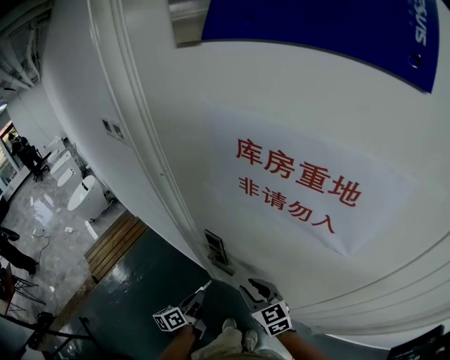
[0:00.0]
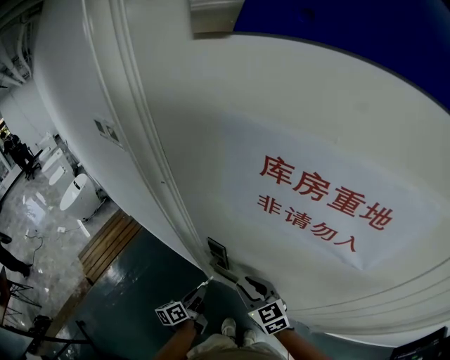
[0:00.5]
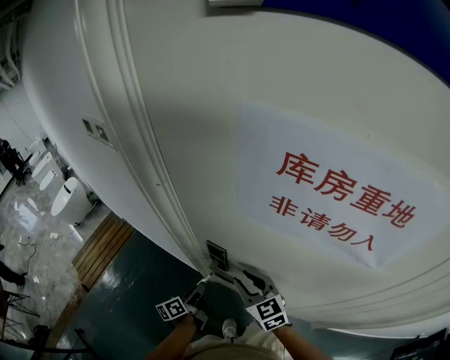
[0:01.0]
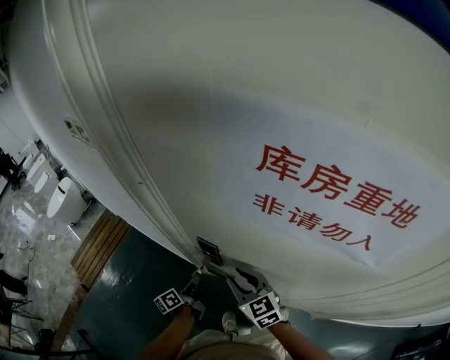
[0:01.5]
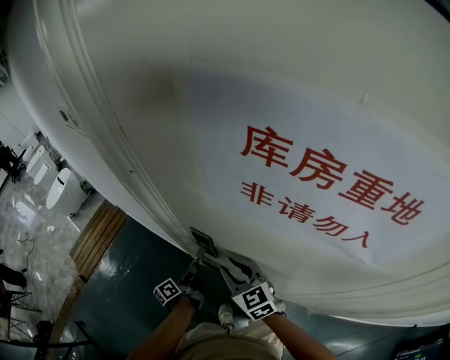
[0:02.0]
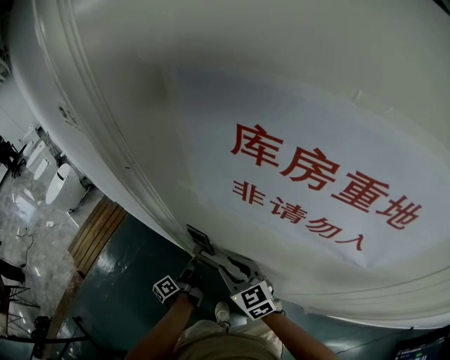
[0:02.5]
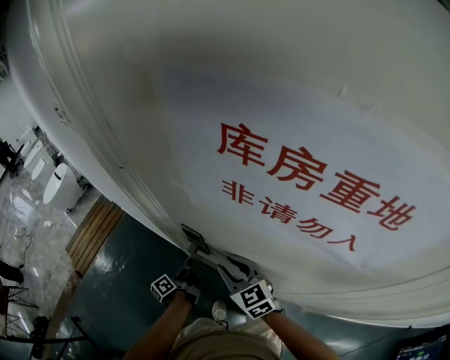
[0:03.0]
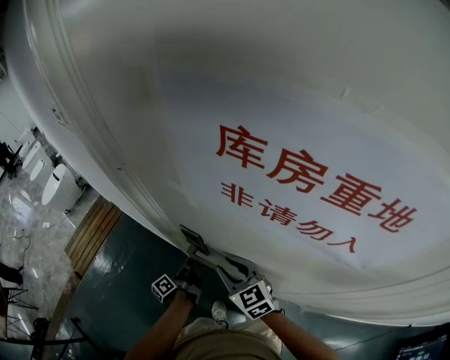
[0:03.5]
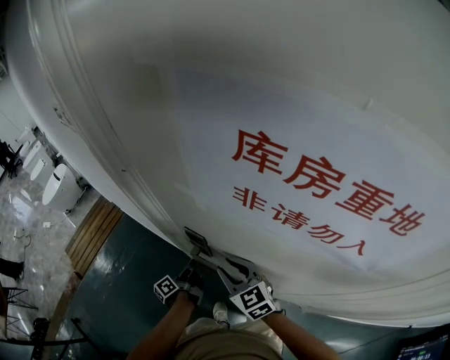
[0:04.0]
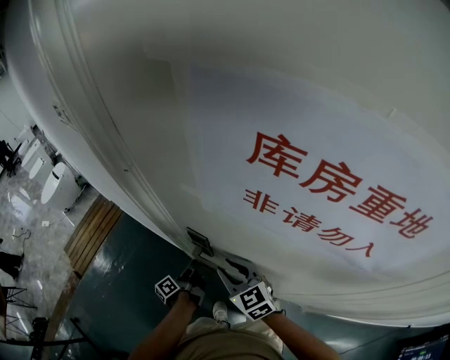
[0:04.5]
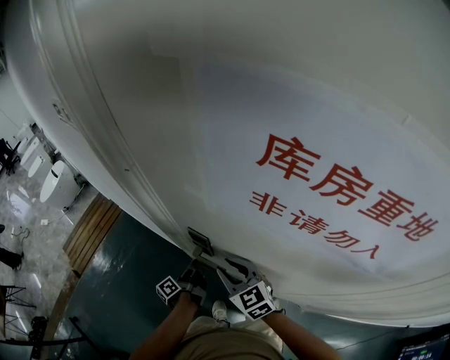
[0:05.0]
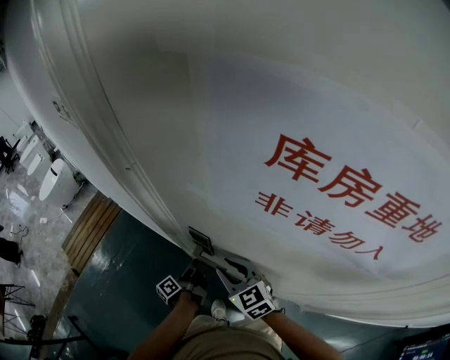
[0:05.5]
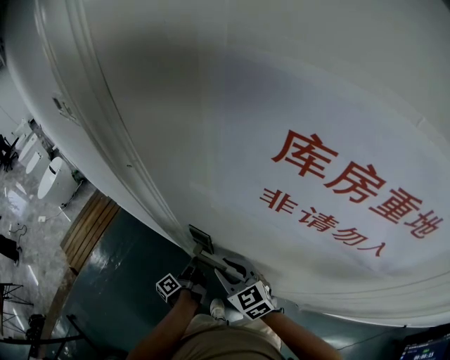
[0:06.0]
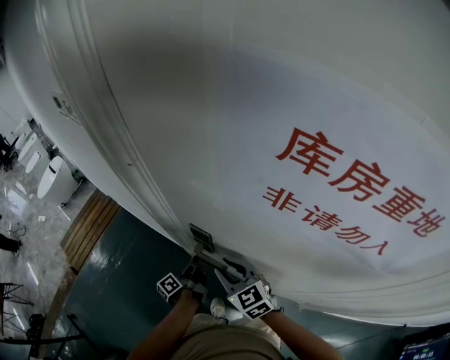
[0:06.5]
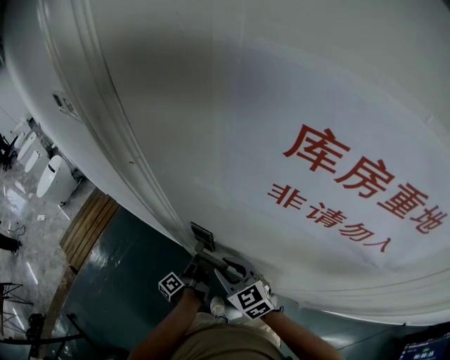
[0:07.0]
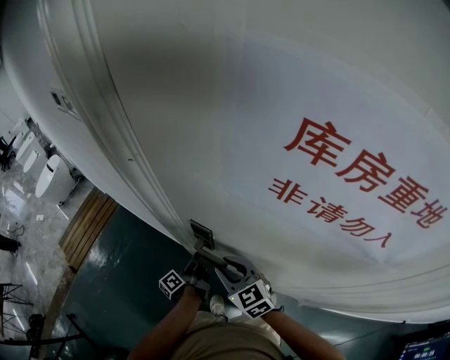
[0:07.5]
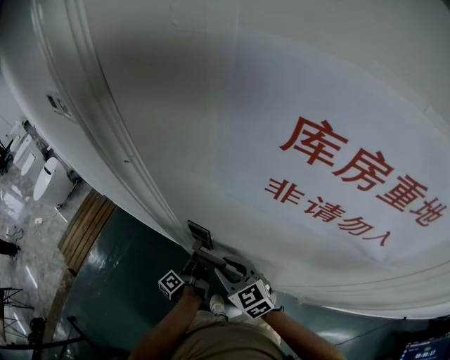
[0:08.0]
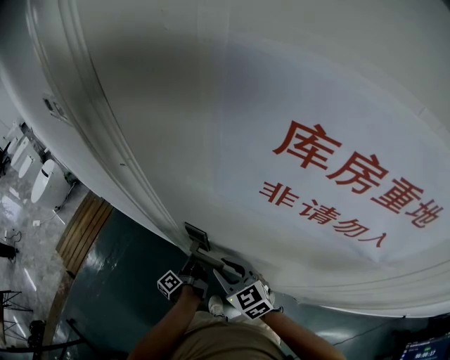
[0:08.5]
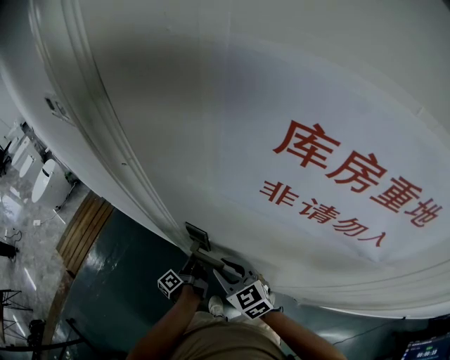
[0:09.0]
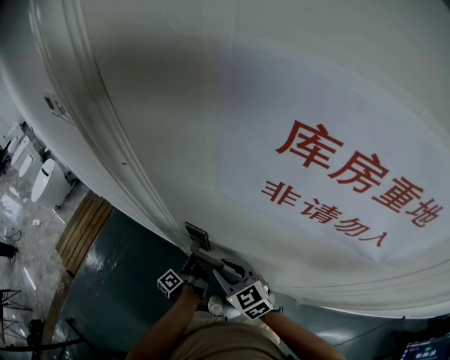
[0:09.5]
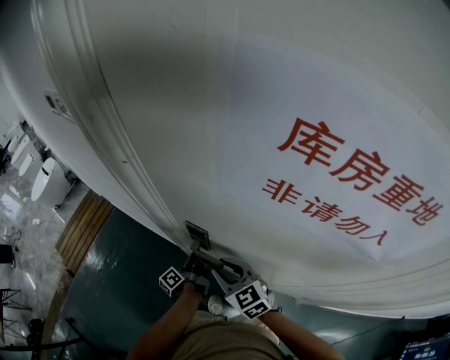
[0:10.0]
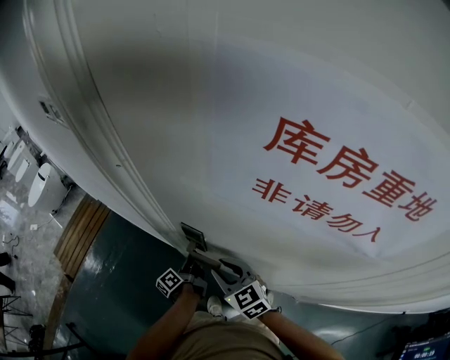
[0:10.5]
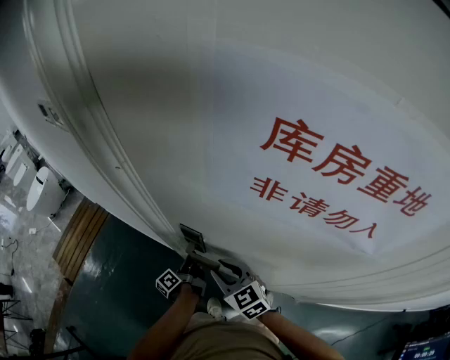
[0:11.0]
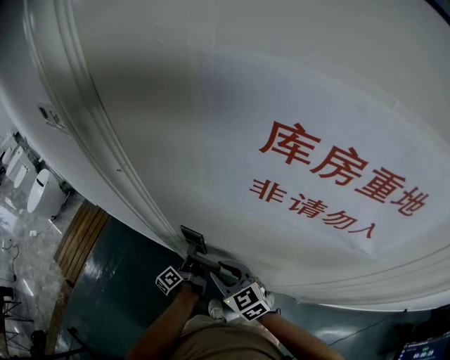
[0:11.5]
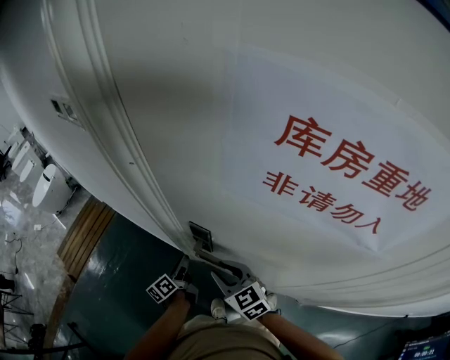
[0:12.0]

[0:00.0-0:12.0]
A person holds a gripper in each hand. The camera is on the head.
0.0 to 2.0 s: The left gripper moves forward and downward, approximately 15 cm, and rotates some 20 degrees; the right gripper shifts approximately 10 cm forward.
2.0 to 10.0 s: There are only small adjustments of the grippers.
10.0 to 12.0 s: The left gripper is displaced to the left by approximately 5 cm, changes its angle by roughly 30 degrees, and opens up.

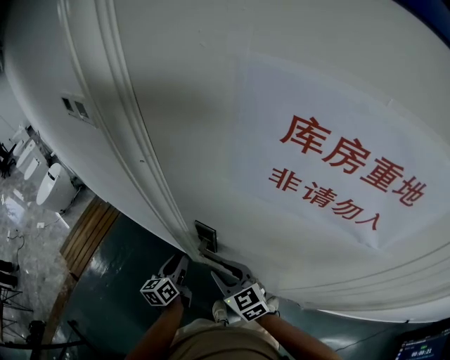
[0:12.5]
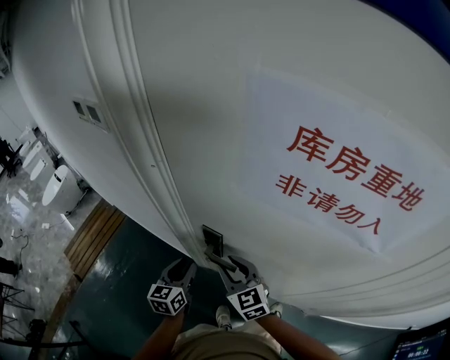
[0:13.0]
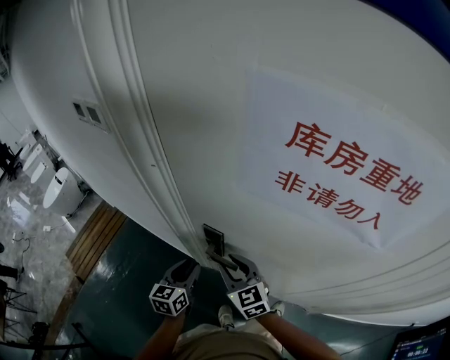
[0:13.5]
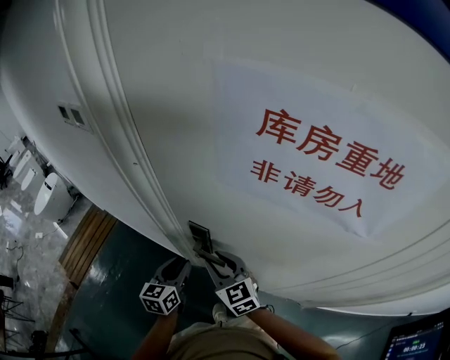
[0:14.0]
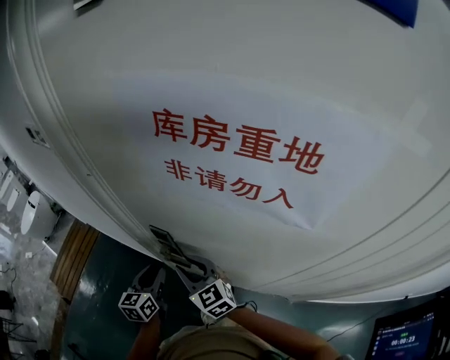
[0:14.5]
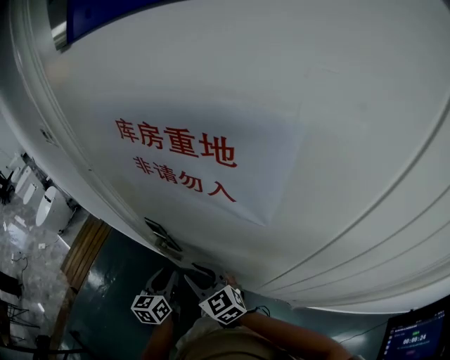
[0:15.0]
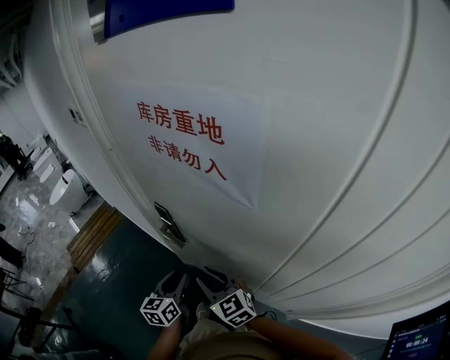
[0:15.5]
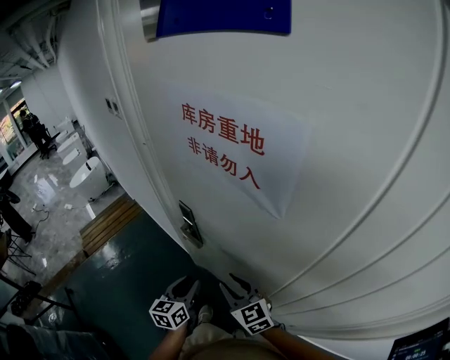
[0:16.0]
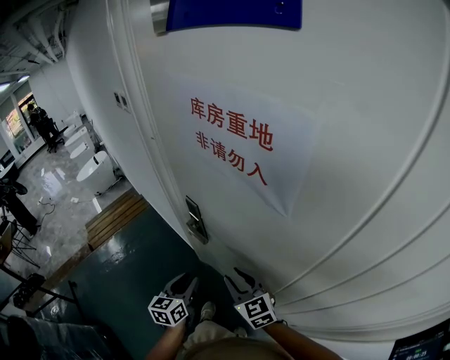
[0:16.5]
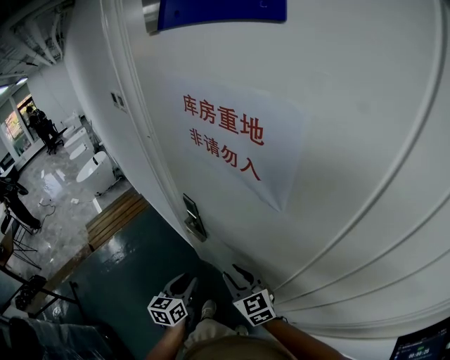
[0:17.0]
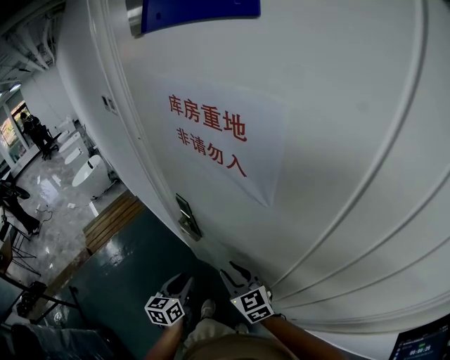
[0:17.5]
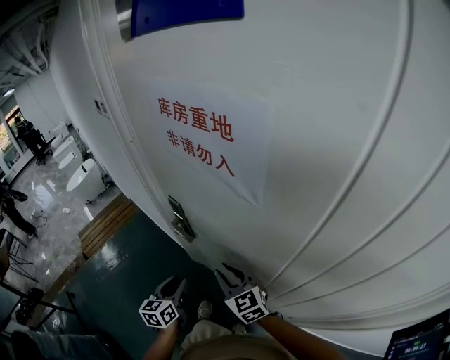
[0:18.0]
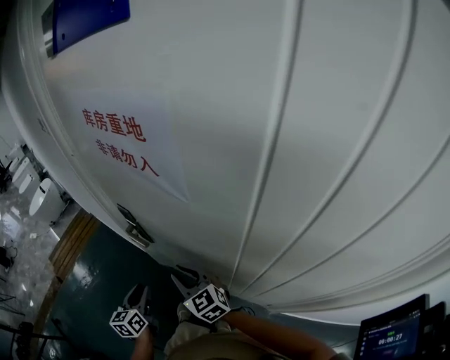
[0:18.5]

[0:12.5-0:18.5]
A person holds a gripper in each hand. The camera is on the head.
12.5 to 14.5 s: The left gripper is displaced to the right and upward by roughly 10 cm.
14.5 to 16.5 s: The two grippers go some 20 cm backward and to the right.
16.5 to 18.5 s: There are only small adjustments of the grippers.

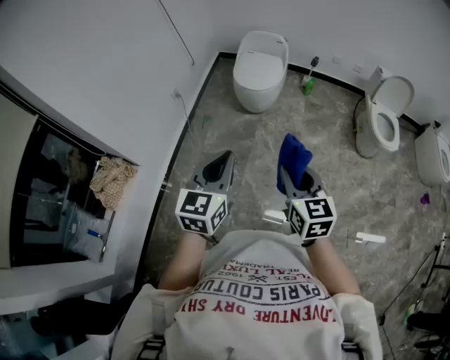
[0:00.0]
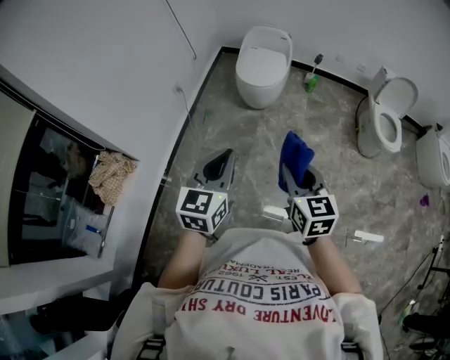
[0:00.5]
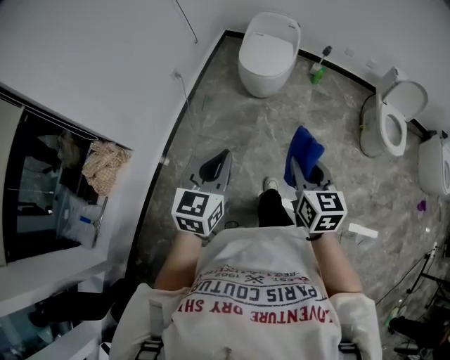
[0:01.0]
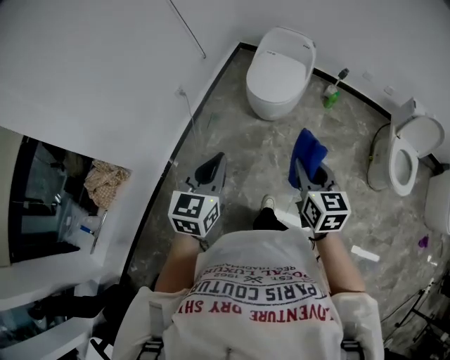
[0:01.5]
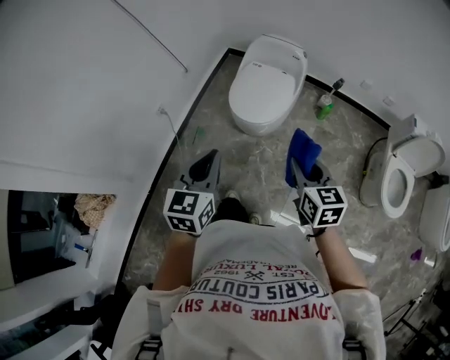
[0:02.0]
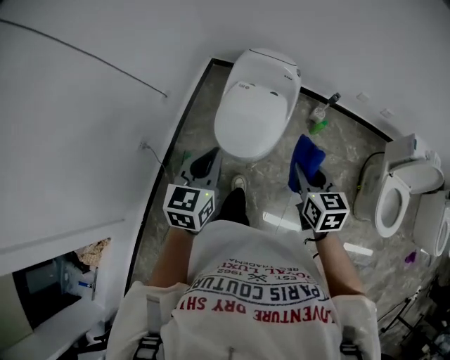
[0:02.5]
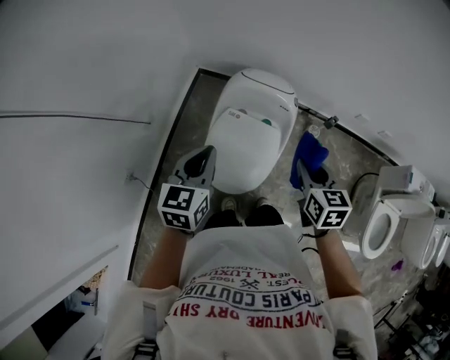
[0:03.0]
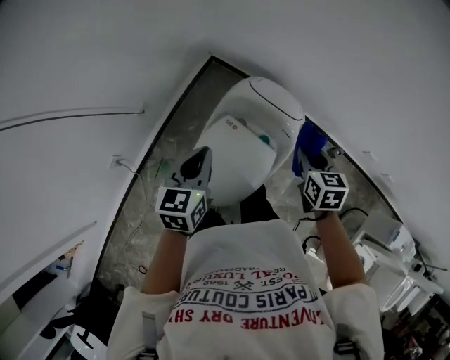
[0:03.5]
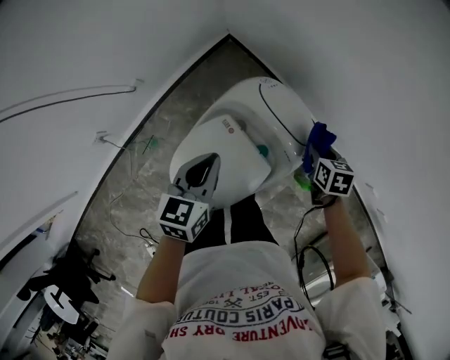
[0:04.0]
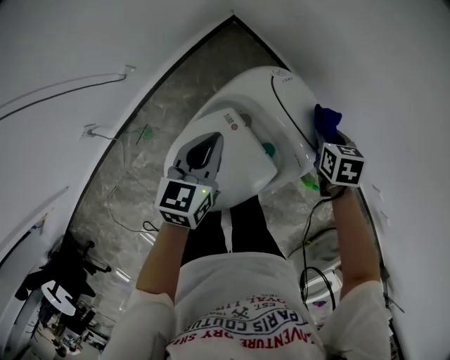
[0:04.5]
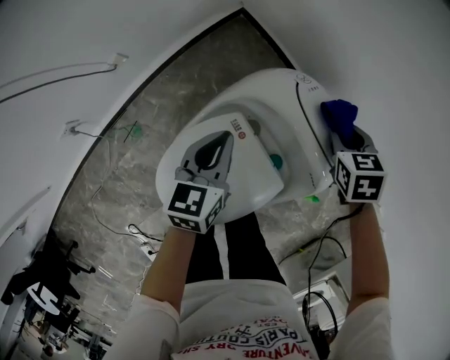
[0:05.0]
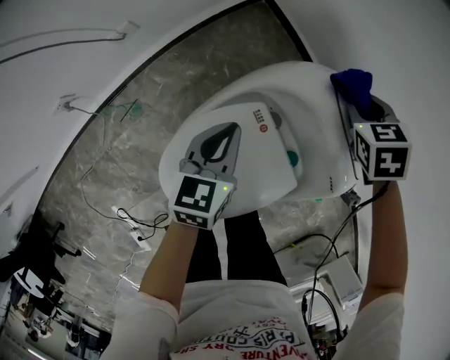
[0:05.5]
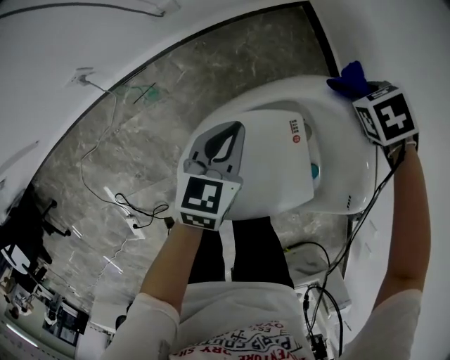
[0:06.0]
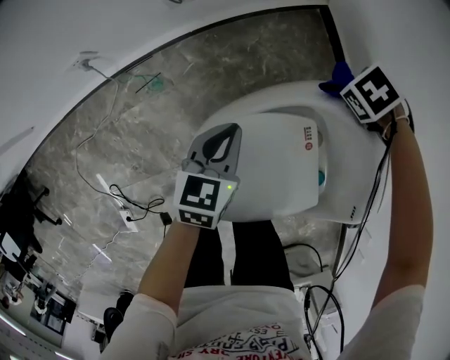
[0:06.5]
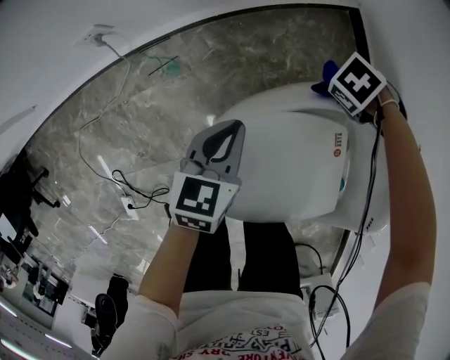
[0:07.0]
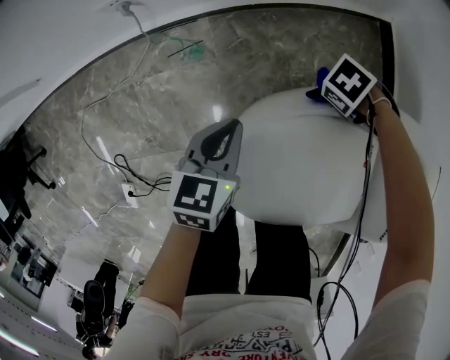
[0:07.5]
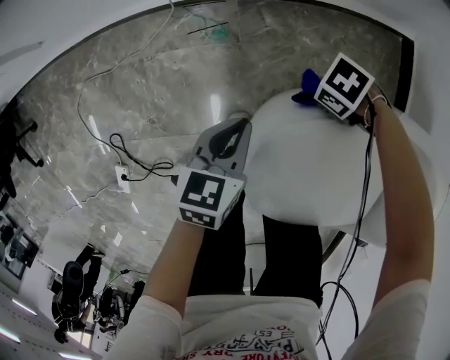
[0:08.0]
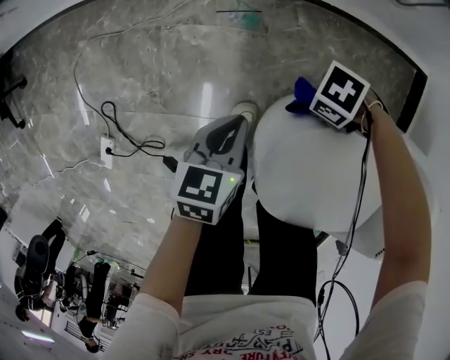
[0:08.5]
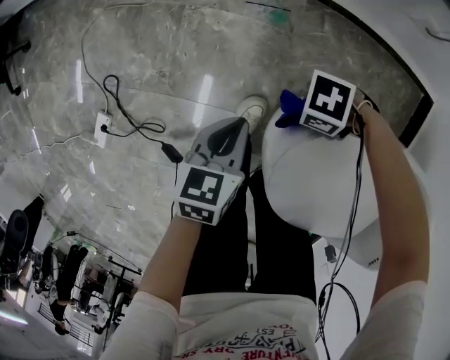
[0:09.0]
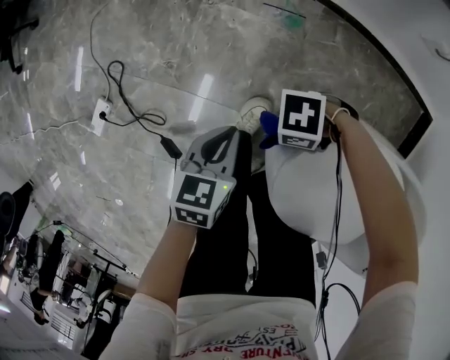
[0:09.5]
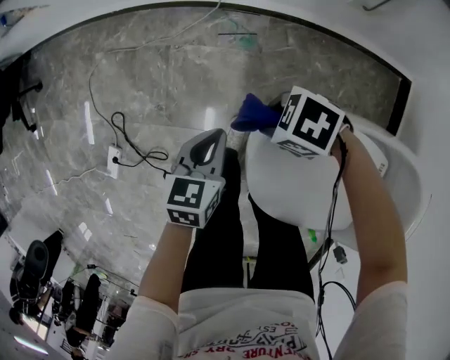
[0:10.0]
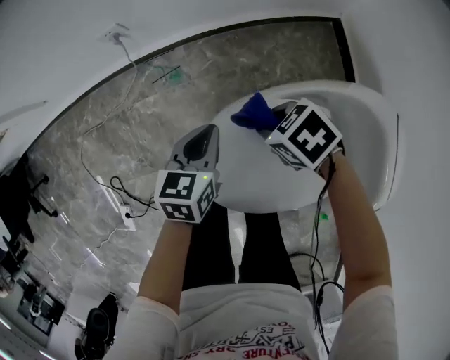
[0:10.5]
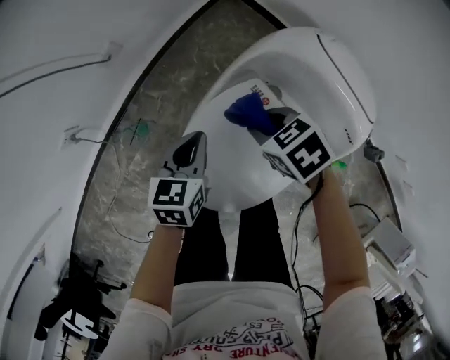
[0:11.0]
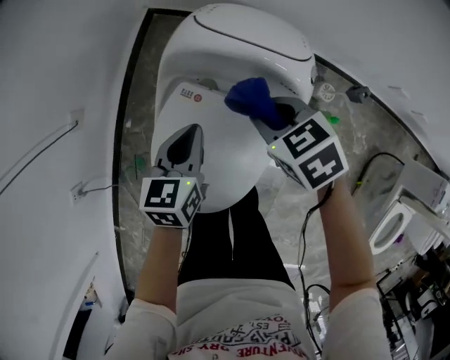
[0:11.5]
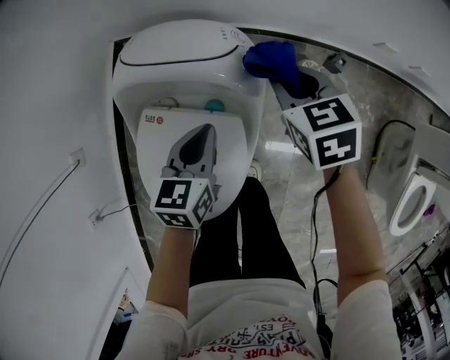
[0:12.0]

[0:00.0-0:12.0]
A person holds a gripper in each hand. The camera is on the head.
0.0 to 2.0 s: The pair of grippers is taken forward, some 50 cm.
2.0 to 4.0 s: The pair of grippers is taken forward, approximately 80 cm. The right gripper tilts its fingers roughly 30 degrees downward, while the left gripper swivels roughly 30 degrees.
4.0 to 6.0 s: The left gripper travels downward by about 25 cm; the right gripper changes place by about 35 cm, and rolls counterclockwise, seen from behind, by approximately 60 degrees.
6.0 to 8.0 s: The right gripper moves some 40 cm, and swivels roughly 50 degrees. Meanwhile the left gripper shifts by approximately 30 cm, and changes its angle by about 20 degrees.
8.0 to 10.0 s: The right gripper shifts by approximately 25 cm, and rotates roughly 30 degrees.
10.0 to 12.0 s: The two grippers travel together, roughly 60 cm. The left gripper rotates some 90 degrees, while the right gripper turns by some 140 degrees.
